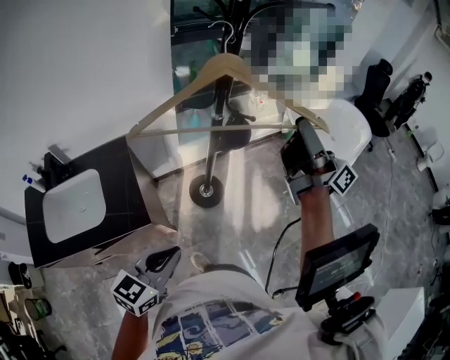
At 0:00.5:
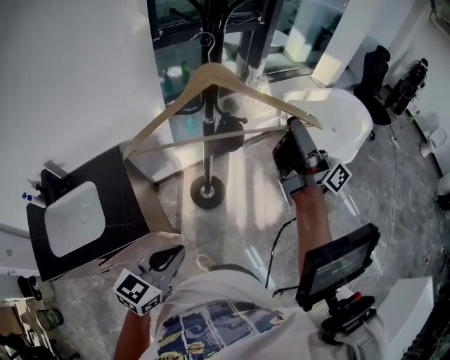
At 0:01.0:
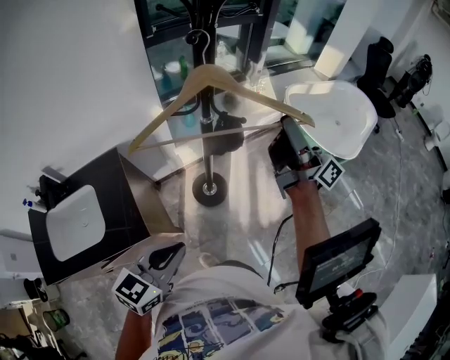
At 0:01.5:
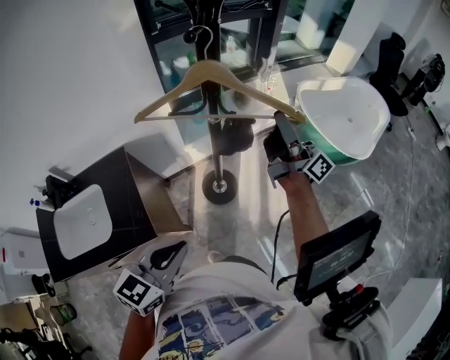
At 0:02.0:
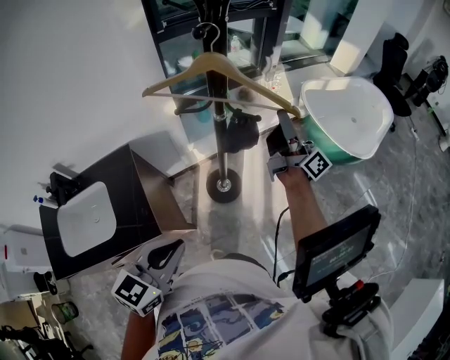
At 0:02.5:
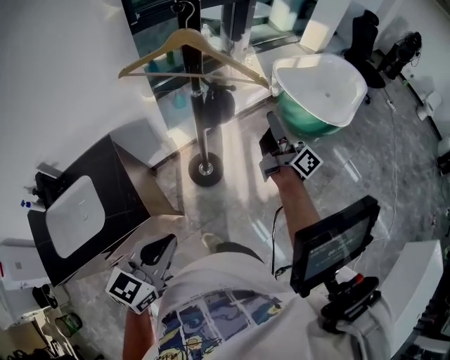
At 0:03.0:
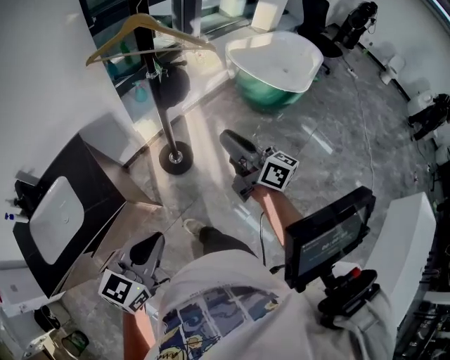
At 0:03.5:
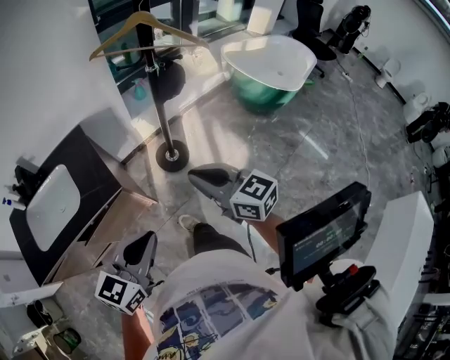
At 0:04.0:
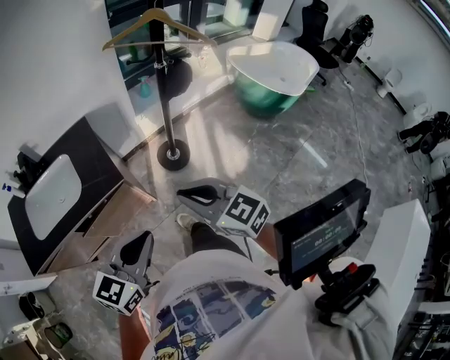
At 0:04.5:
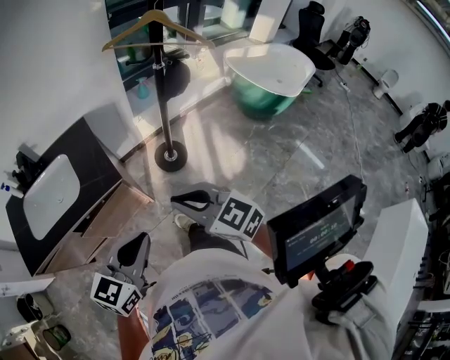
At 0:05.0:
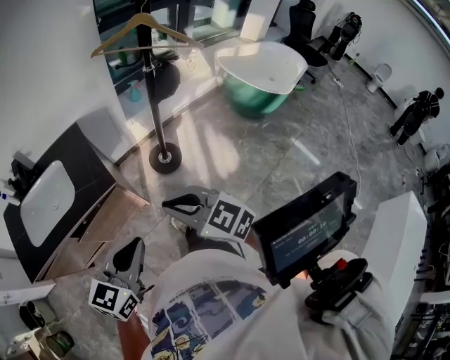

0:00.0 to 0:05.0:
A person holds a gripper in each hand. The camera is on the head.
0:00.0 to 0:02.5: The left gripper reaches approximately 10 cm forward, then returns; the right gripper shifts some 20 cm downward, and swivels approximately 20 degrees.
0:02.5 to 0:05.0: The left gripper moves backward, about 20 cm; the right gripper shifts approximately 50 cm backward and to the left, and tilts its fingers approximately 40 degrees downward.

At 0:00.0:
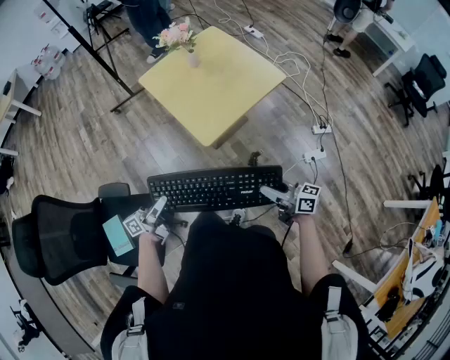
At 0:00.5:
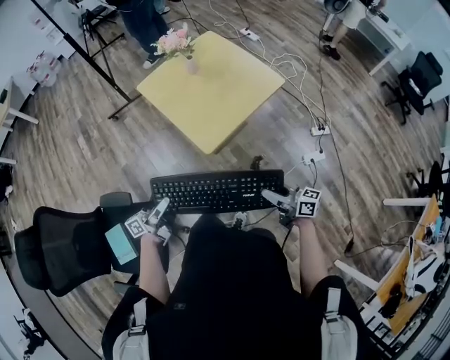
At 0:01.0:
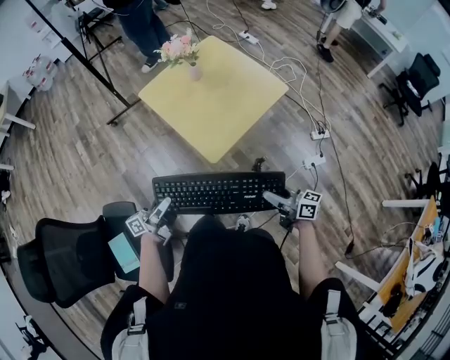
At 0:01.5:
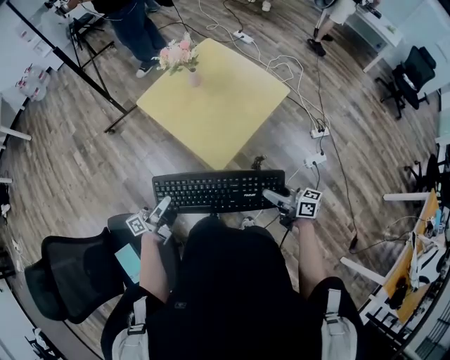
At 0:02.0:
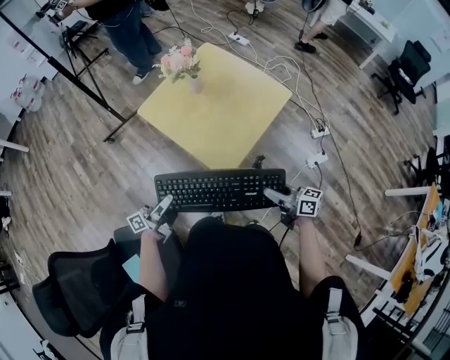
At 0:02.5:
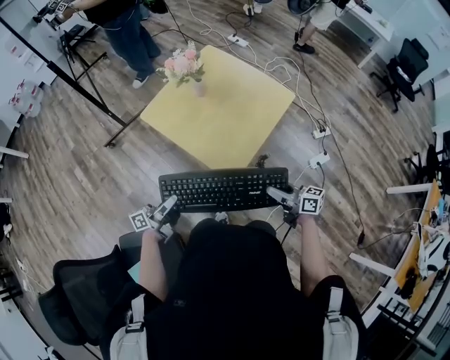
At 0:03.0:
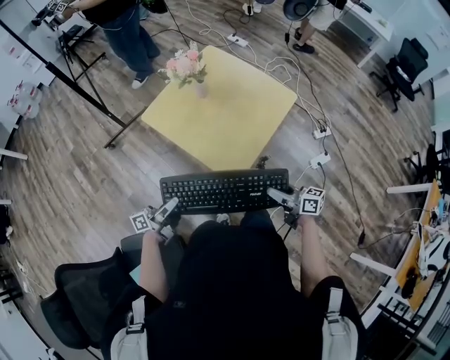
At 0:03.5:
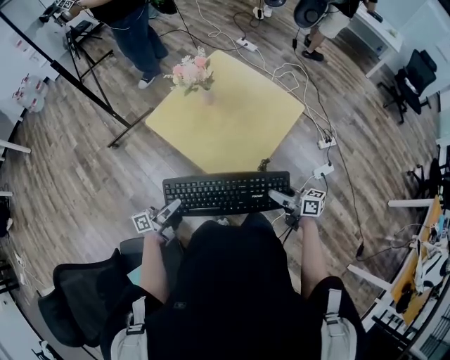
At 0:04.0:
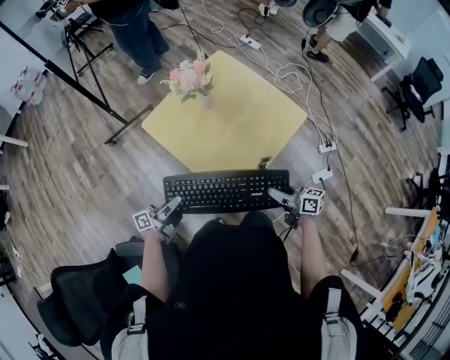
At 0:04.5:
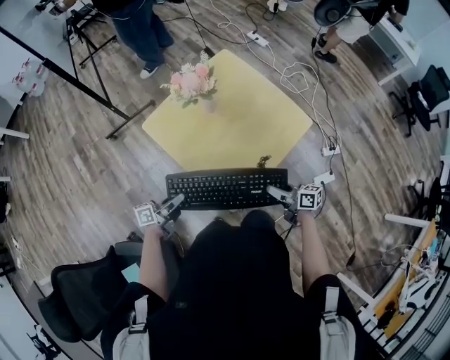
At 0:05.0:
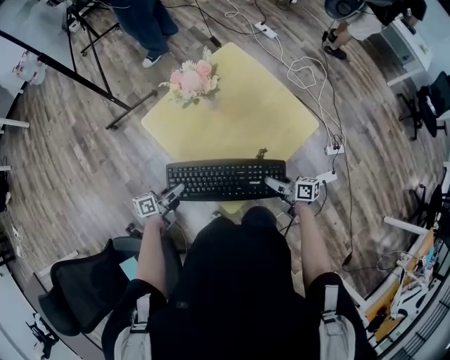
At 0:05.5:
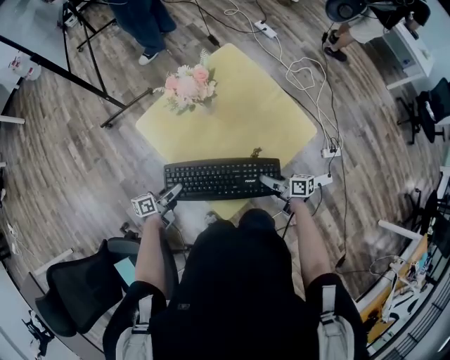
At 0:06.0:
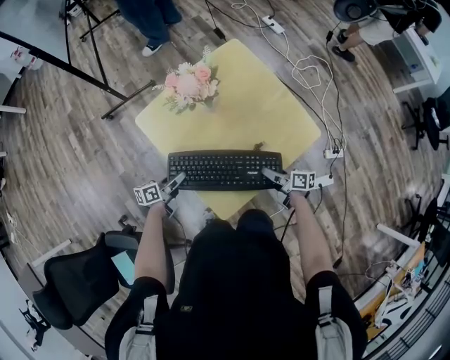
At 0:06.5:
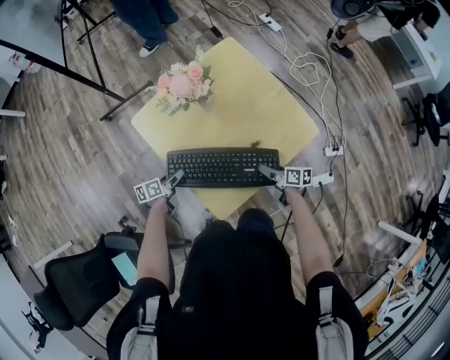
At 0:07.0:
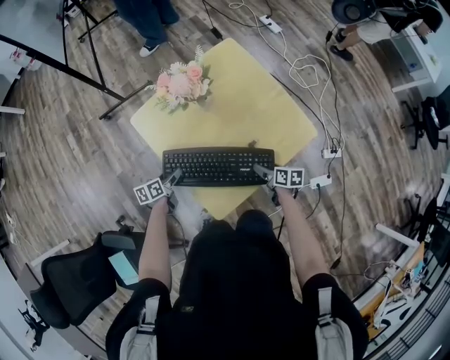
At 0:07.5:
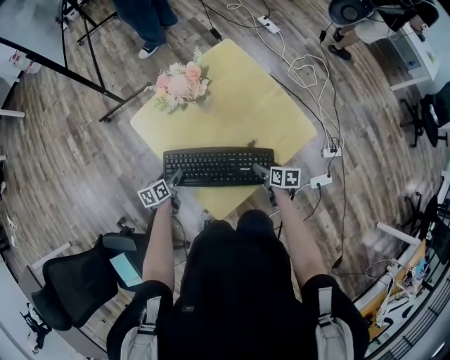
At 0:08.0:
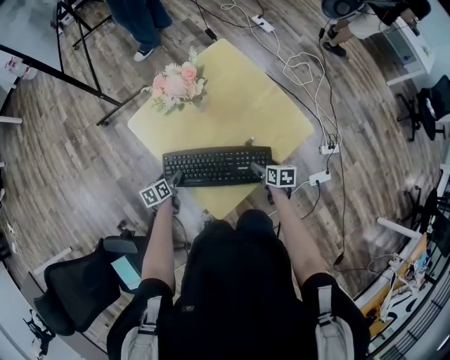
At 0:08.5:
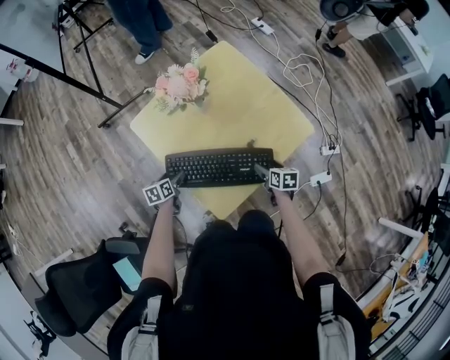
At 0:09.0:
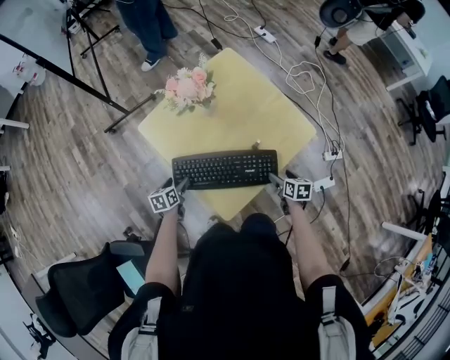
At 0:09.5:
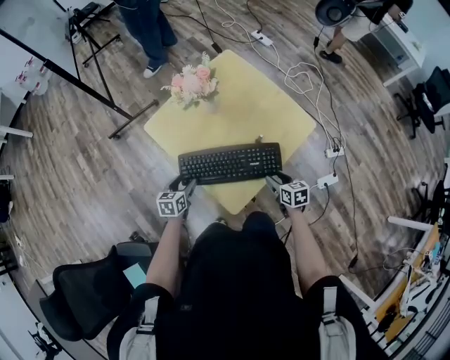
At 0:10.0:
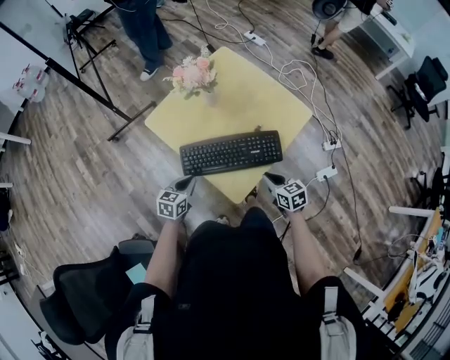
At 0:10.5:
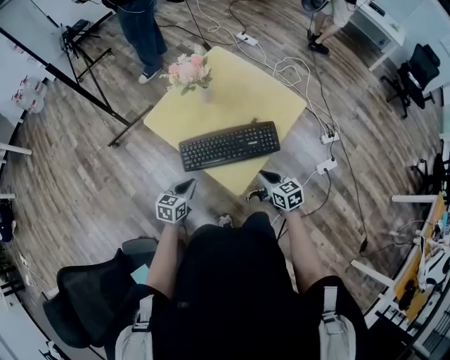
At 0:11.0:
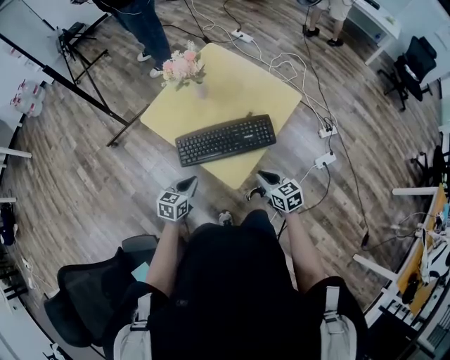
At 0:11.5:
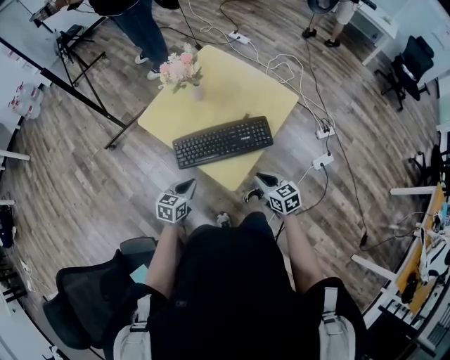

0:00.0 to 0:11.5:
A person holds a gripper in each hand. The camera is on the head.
0:00.0 to 0:02.0: The right gripper moves forward and to the left, some 15 cm. Meanwhile the left gripper goes about 20 cm forward.
0:02.0 to 0:04.0: Both grippers travel together forward, some 15 cm.
0:04.0 to 0:06.0: Both grippers move forward and downward, about 20 cm. The right gripper turns by approximately 20 degrees. The left gripper rotates approximately 30 degrees.
0:06.0 to 0:07.5: The right gripper turns by approximately 30 degrees, and opens its fingers. The left gripper rotates some 30 degrees, and opens.
0:07.5 to 0:09.5: The right gripper heads backward and upward, covering roughly 10 cm, and closes. Meanwhile the left gripper shifts approximately 10 cm upward and backward, and swivels roughly 30 degrees.
0:09.5 to 0:11.5: The left gripper moves backward and upward, about 15 cm, swivels approximately 20 degrees, and closes up. Meanwhile the right gripper is displaced backward, upward and to the left by roughly 15 cm, and closes.

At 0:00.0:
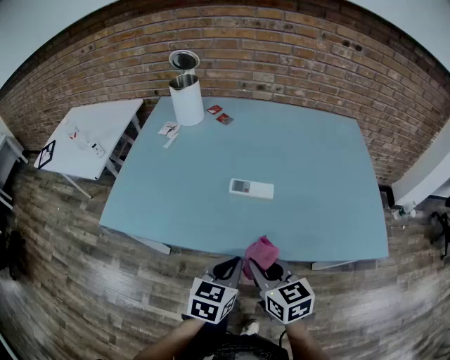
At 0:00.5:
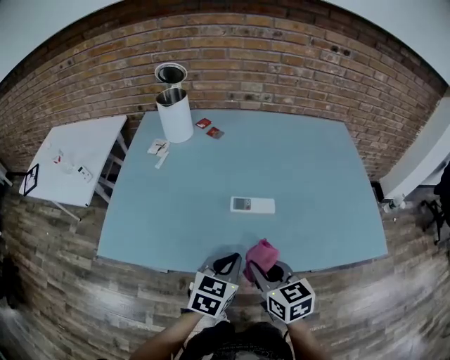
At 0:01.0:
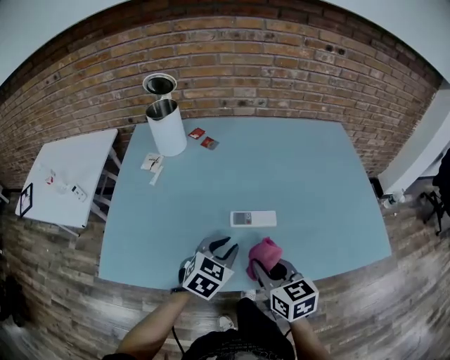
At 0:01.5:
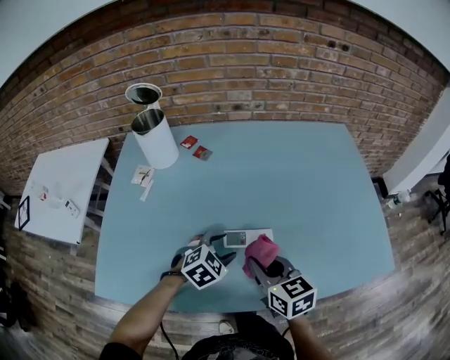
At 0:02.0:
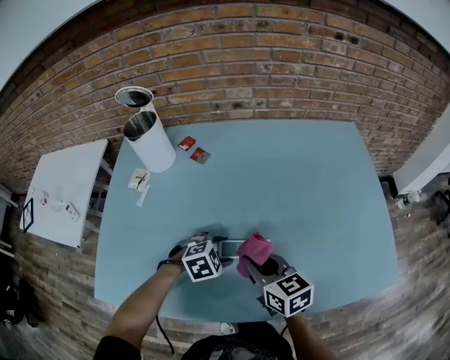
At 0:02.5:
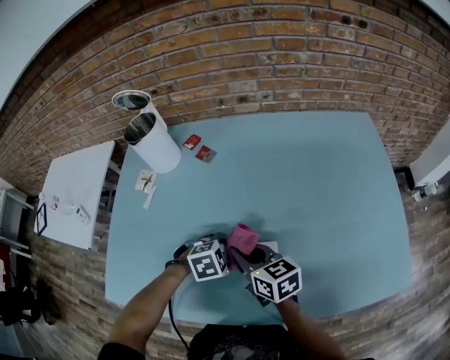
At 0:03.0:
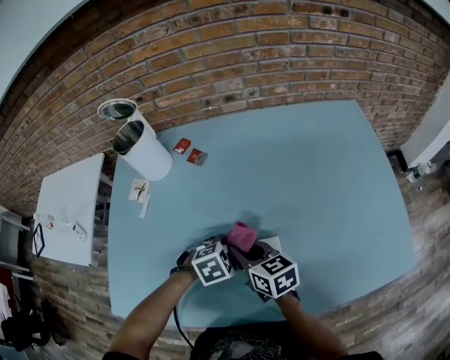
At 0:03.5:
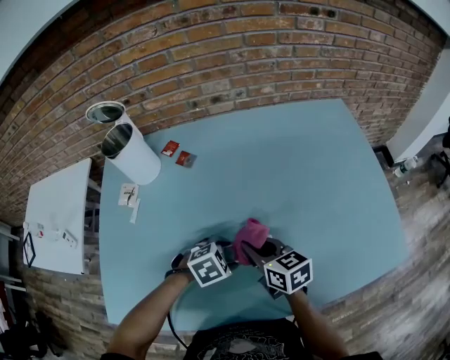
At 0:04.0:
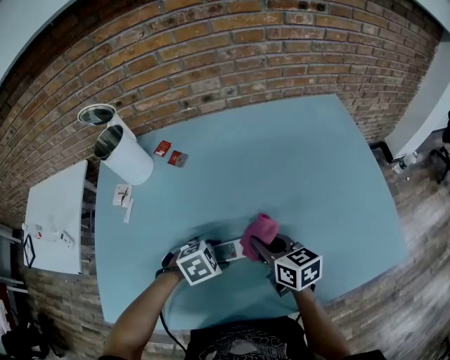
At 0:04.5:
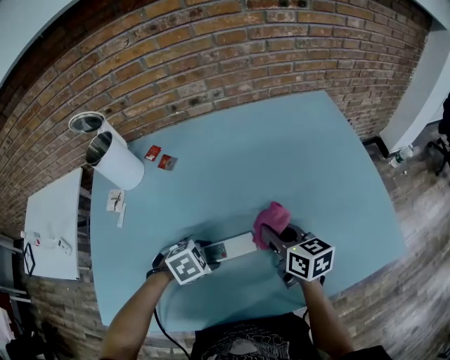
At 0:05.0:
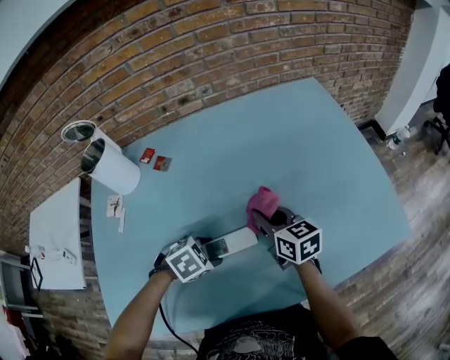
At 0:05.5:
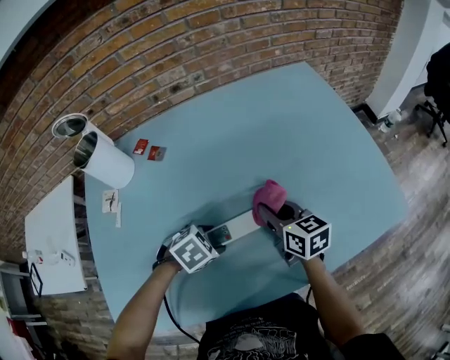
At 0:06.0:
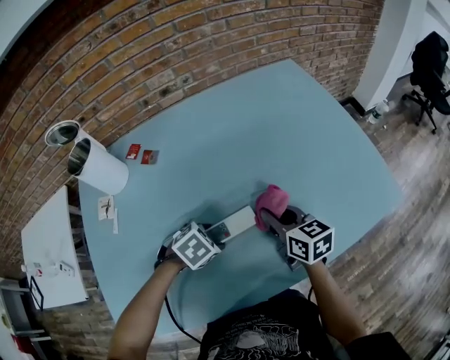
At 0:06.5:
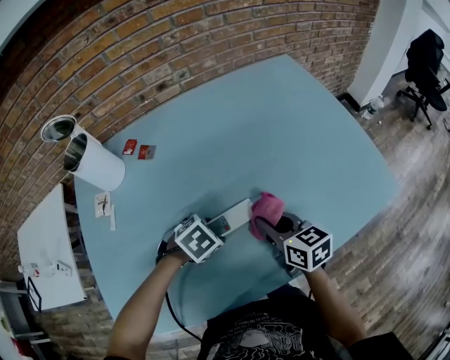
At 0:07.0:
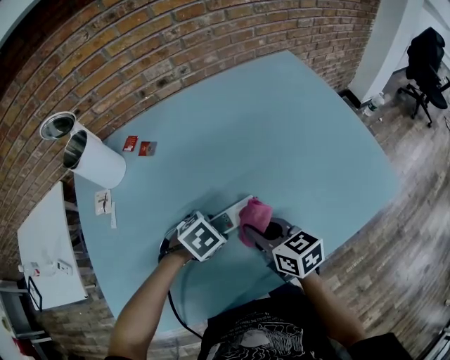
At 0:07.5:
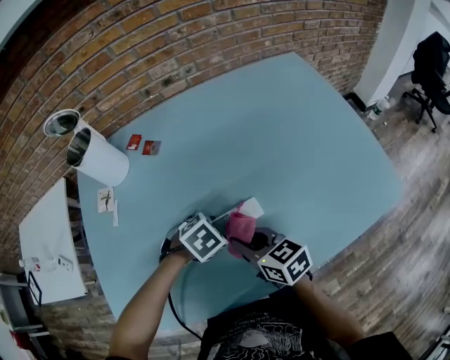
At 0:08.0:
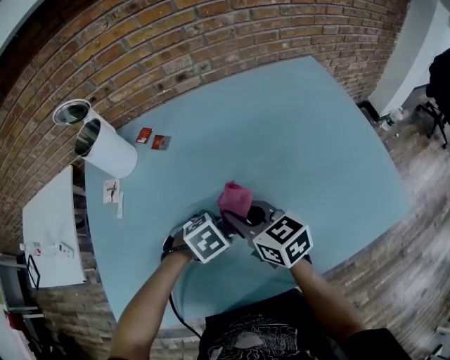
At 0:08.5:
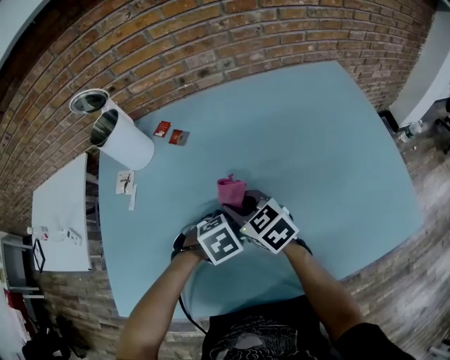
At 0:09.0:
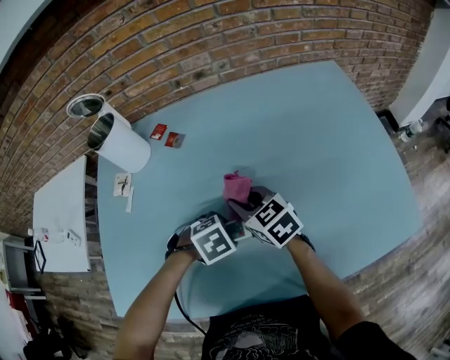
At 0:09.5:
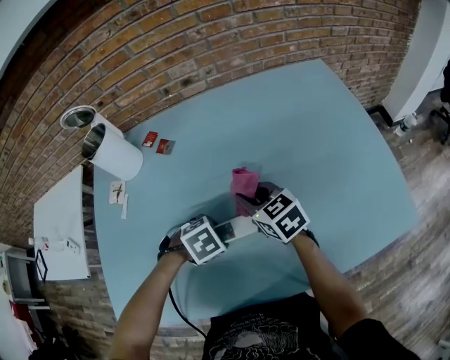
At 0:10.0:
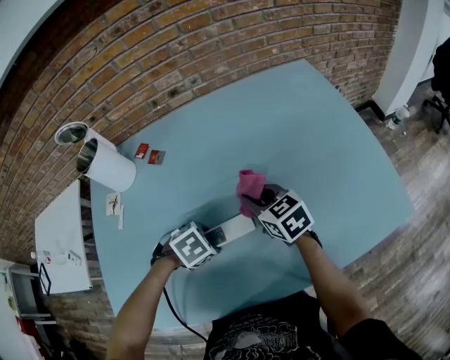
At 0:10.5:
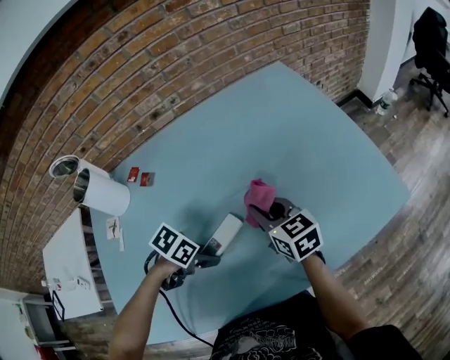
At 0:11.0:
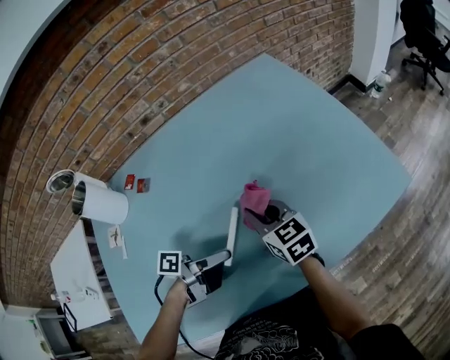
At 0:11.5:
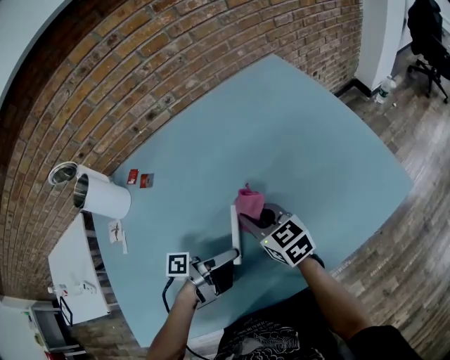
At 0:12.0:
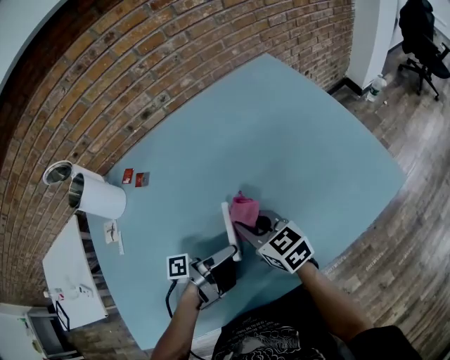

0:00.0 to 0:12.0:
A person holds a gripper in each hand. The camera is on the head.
0:00.0 to 0:02.0: The right gripper heads forward, covering some 20 cm. The left gripper heads forward and downward, covering roughly 25 cm, tilts its fingers some 30 degrees downward, and opens its fingers.
0:02.0 to 0:04.0: The right gripper ends up approximately 10 cm from where it was.
0:04.0 to 0:06.0: The right gripper moves to the right, approximately 5 cm.
0:06.0 to 0:08.0: The right gripper moves approximately 15 cm, and swivels approximately 20 degrees.
0:08.0 to 0:10.0: The right gripper ends up roughly 10 cm from where it was.
0:10.0 to 0:12.0: The left gripper changes place by about 10 cm, and tips its fingers upward by roughly 80 degrees. The right gripper changes place by approximately 5 cm.
